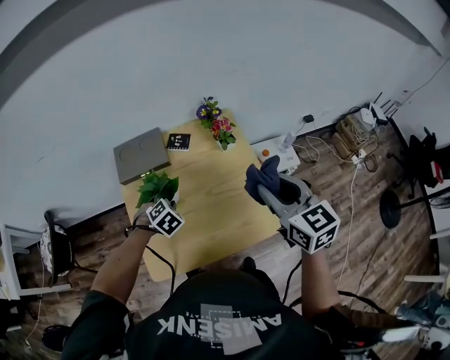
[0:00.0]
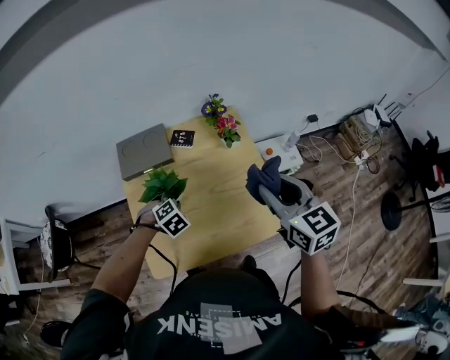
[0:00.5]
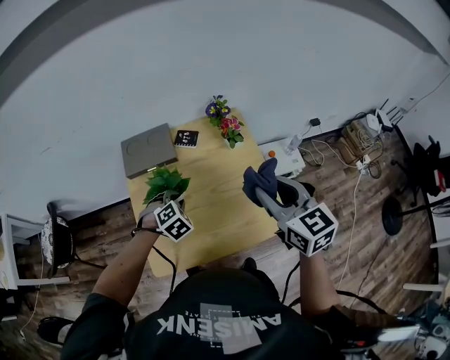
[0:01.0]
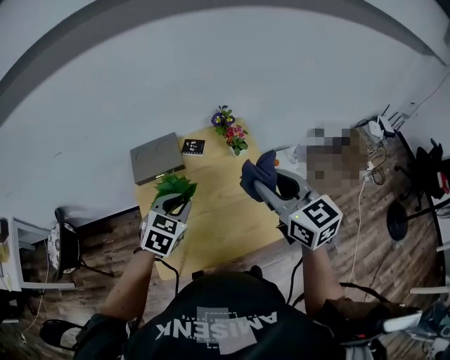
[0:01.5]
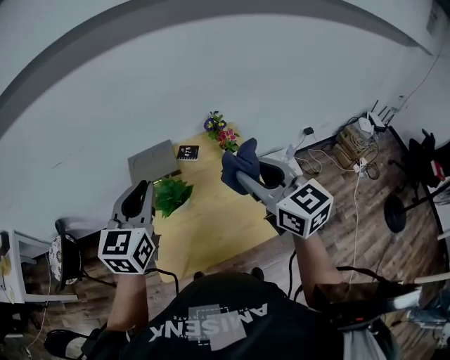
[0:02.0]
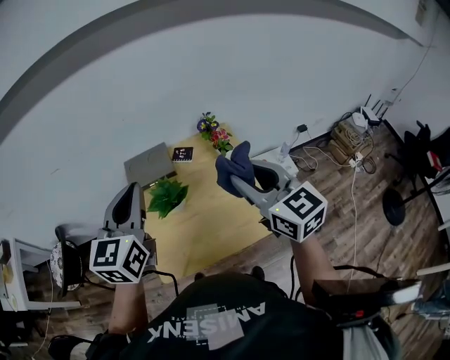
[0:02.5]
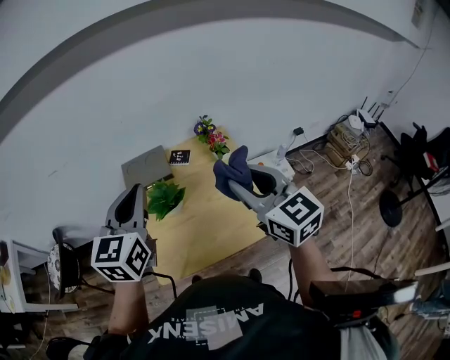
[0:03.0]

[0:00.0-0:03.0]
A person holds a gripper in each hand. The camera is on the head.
0:00.0 to 0:01.5: The right gripper changes place by approximately 5 cm; the left gripper is displaced upward by about 15 cm, and swivels approximately 30 degrees.
0:01.5 to 0:03.0: The right gripper is displaced upward by some 5 cm. The left gripper shifts some 20 cm upward, and tips its fingers upward by roughly 30 degrees.

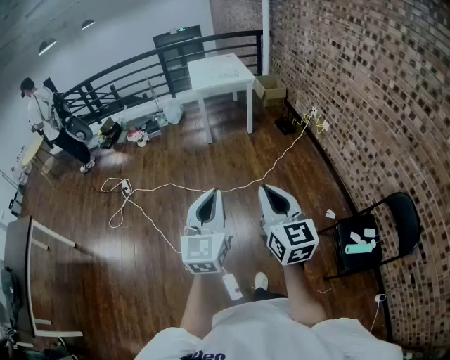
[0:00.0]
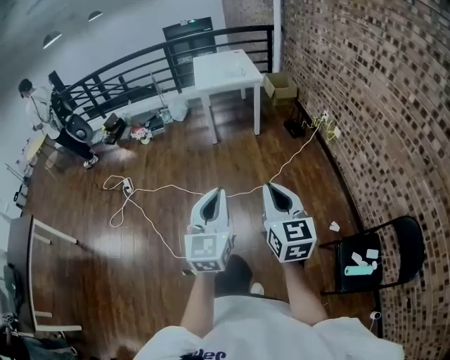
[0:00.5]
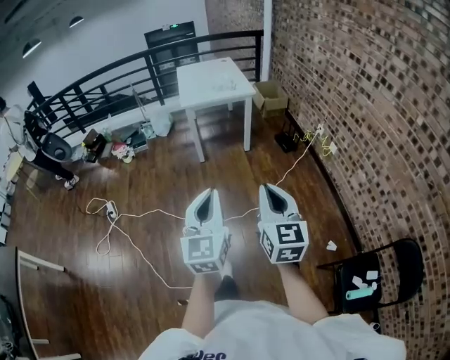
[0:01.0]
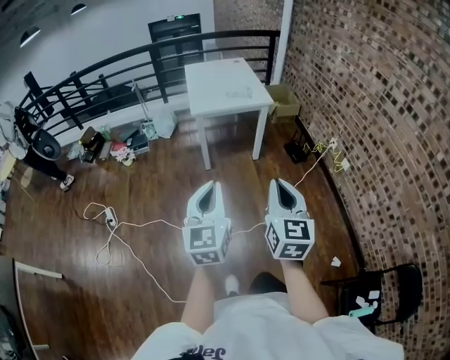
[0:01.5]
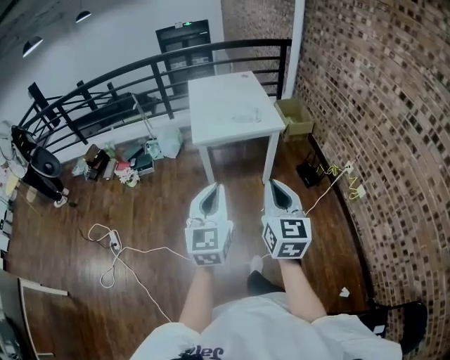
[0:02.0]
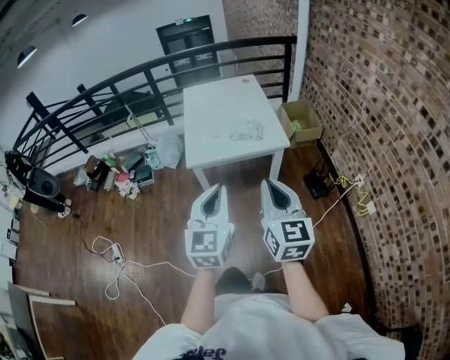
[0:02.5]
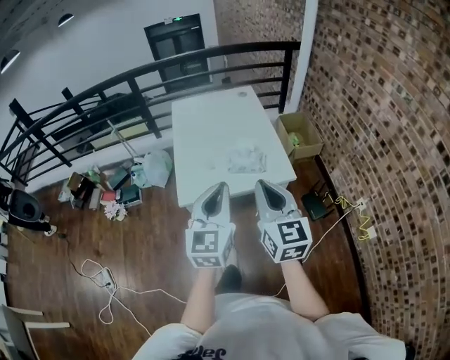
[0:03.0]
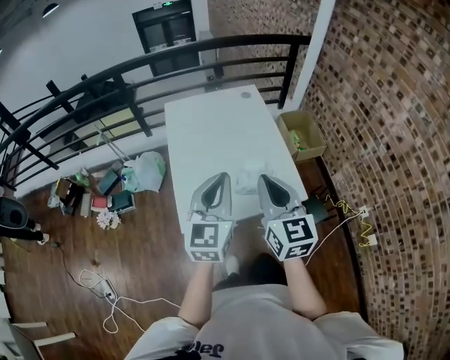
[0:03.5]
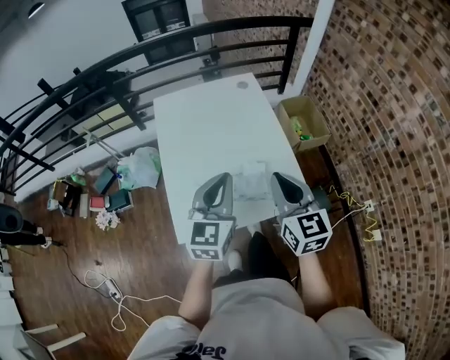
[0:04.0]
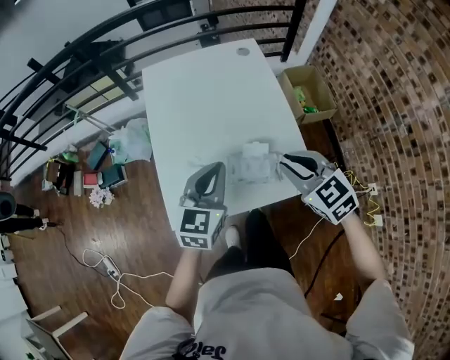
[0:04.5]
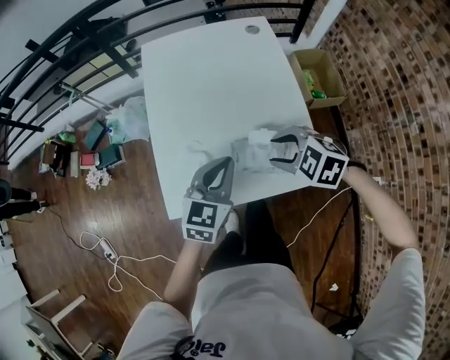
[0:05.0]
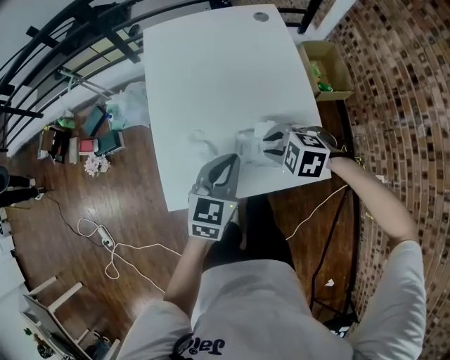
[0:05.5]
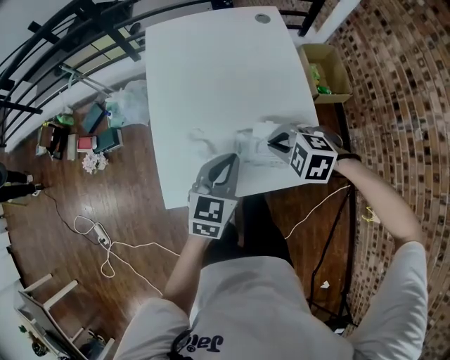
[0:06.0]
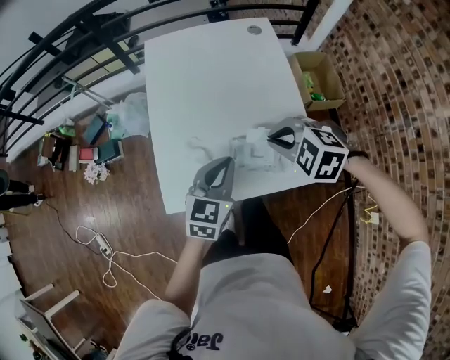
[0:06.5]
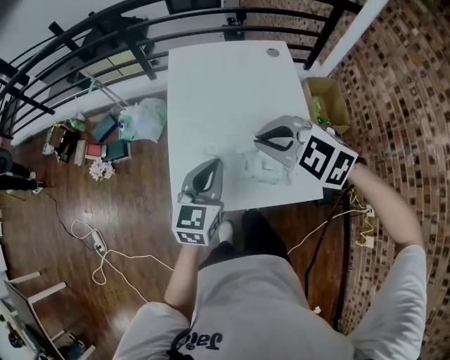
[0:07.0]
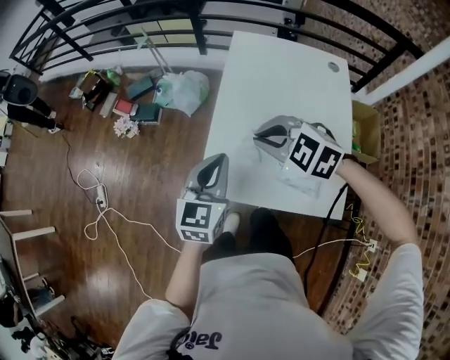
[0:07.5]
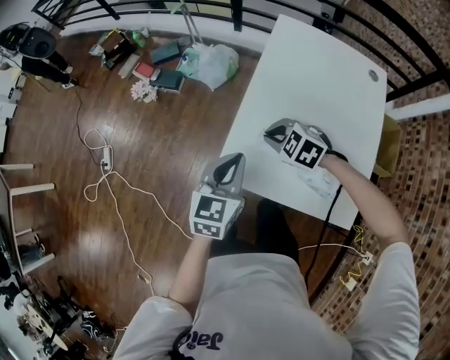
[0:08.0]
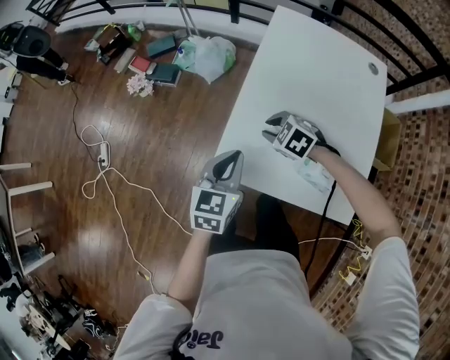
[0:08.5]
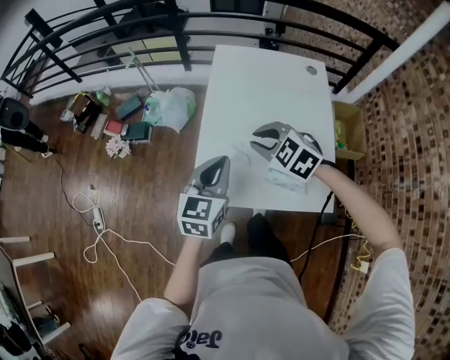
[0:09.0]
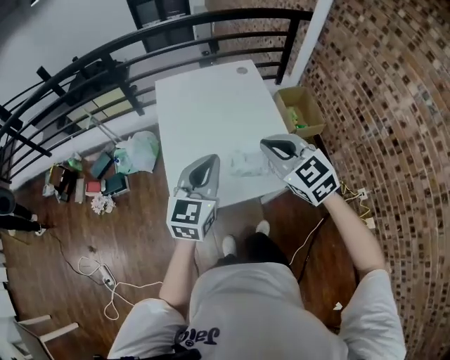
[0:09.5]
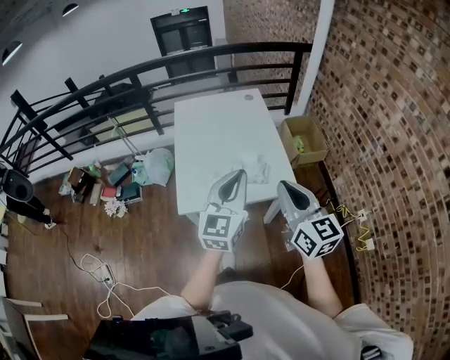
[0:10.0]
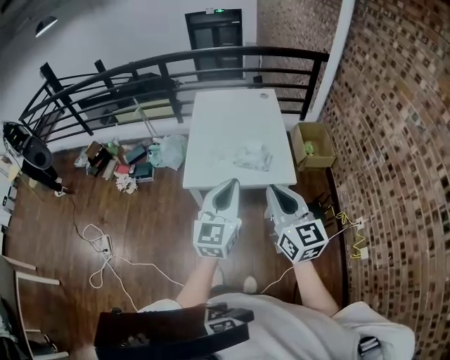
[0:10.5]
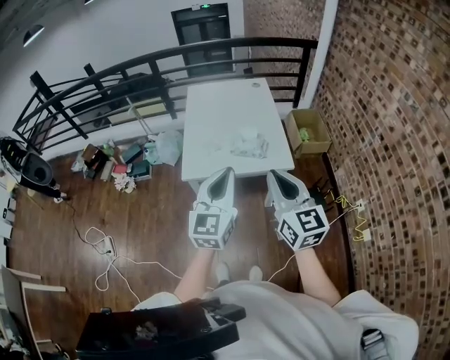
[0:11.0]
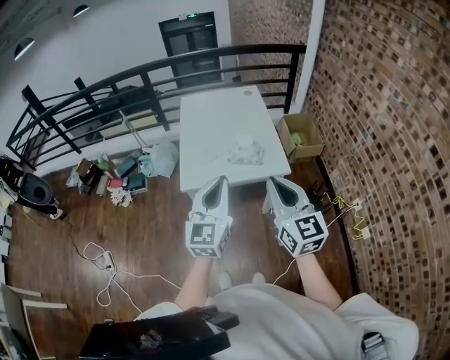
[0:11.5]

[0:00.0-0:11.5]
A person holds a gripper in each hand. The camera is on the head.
0:00.0 to 0:02.0: The two grippers travel together, forward, about 80 cm.
0:02.0 to 0:04.0: The pair of grippers is taken forward, approximately 70 cm.
0:04.0 to 0:06.0: Both grippers travel together downward, some 20 cm. The right gripper tilts its fingers some 50 degrees downward, and opens and closes again.
0:06.0 to 0:07.5: The left gripper shifts by approximately 20 cm, and turns by about 30 degrees, while the right gripper shifts by approximately 25 cm, and changes its angle by some 20 degrees.
0:07.5 to 0:09.5: The left gripper moves some 15 cm, and rotates roughly 30 degrees. Meanwhile the right gripper travels downward and back again, roughly 20 cm each way, changes its angle by roughly 50 degrees, and opens, then closes again.
0:09.5 to 0:11.5: Both grippers move backward, roughly 30 cm. The right gripper rotates roughly 30 degrees.

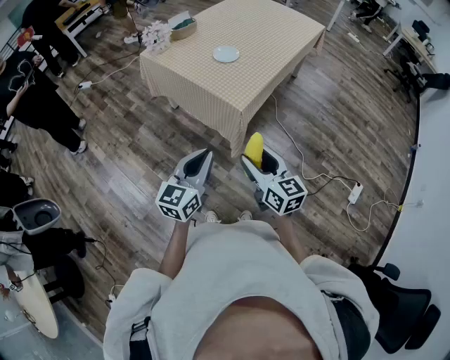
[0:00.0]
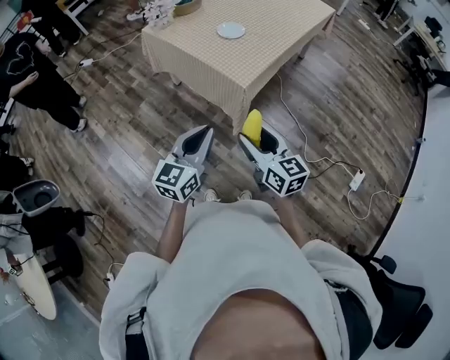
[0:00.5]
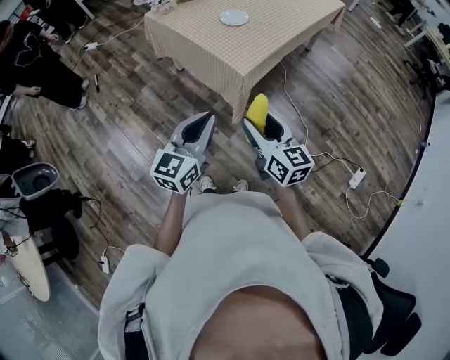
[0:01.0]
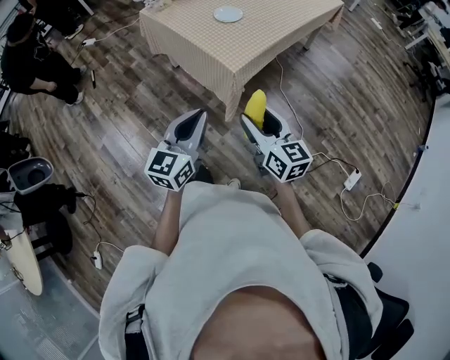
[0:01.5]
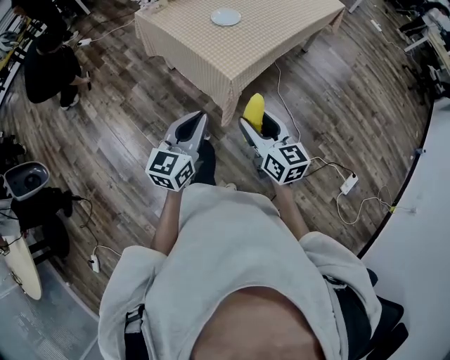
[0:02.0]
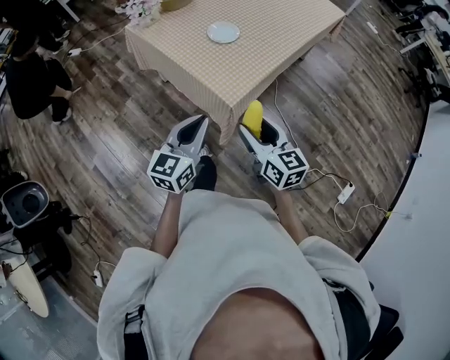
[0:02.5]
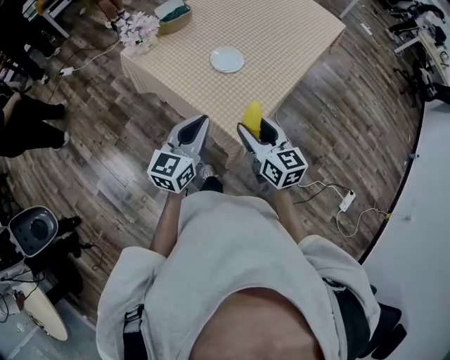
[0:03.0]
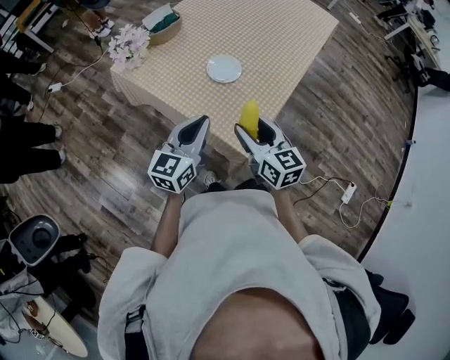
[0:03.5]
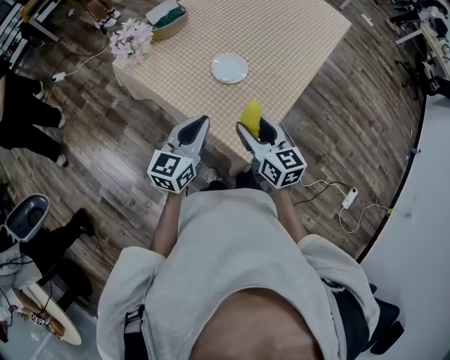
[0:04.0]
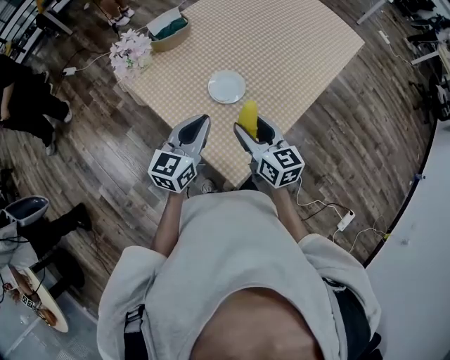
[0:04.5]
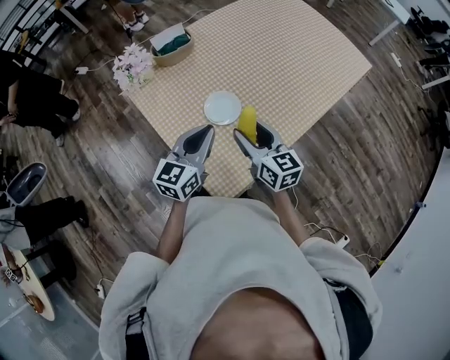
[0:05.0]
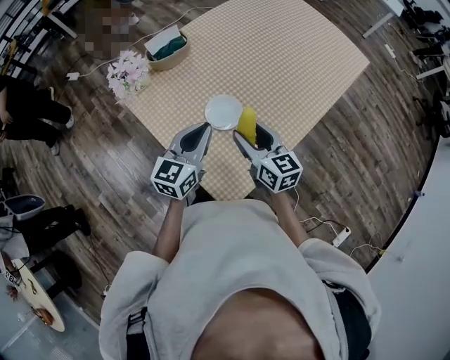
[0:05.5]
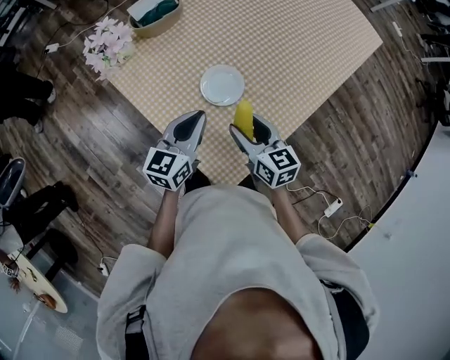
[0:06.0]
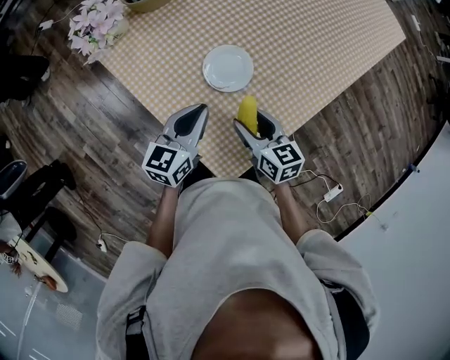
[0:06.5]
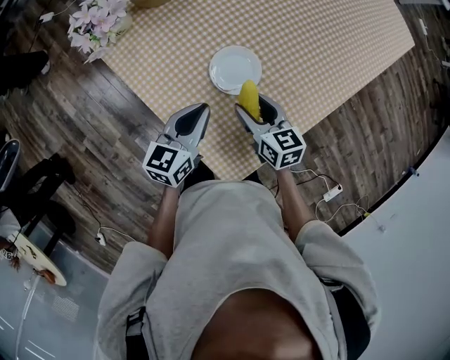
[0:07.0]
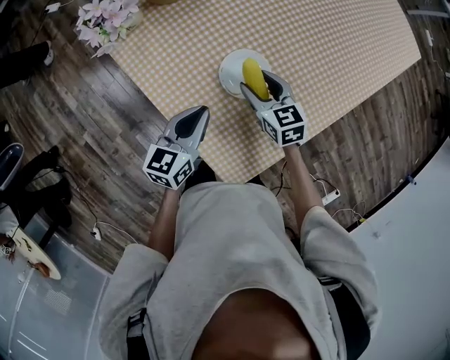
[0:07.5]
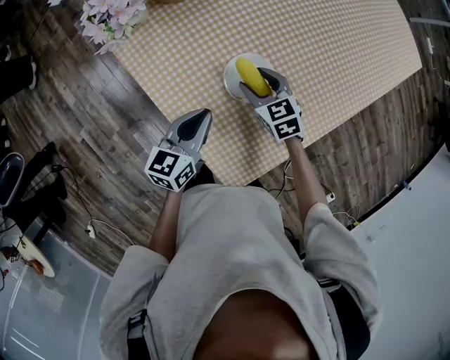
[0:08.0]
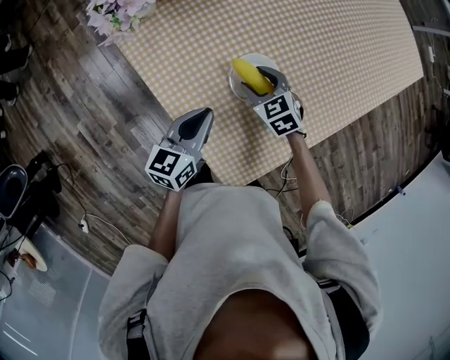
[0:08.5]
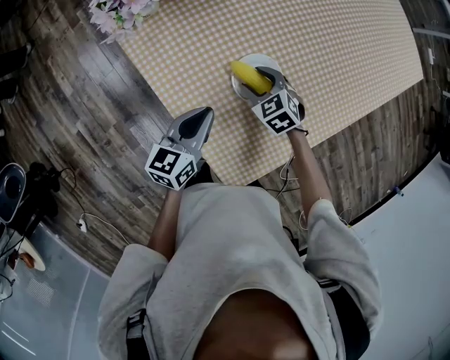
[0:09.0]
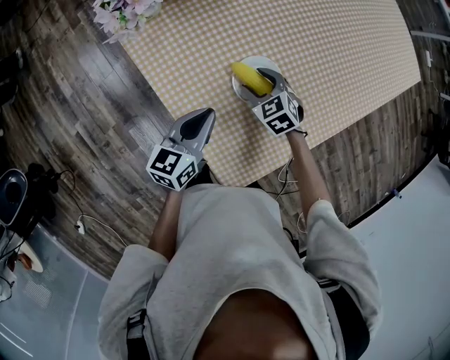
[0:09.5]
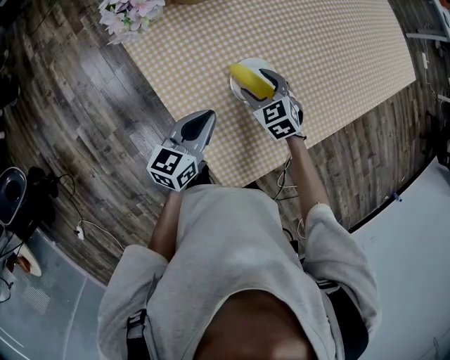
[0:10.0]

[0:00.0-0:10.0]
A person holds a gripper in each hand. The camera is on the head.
0:00.0 to 0:02.0: The right gripper goes about 10 cm forward and to the right. Meanwhile the left gripper travels to the right and forward by approximately 10 cm.
0:02.0 to 0:04.0: The grippers both shift forward by approximately 35 cm.
0:04.0 to 0:06.0: The right gripper shifts approximately 15 cm forward and downward. Meanwhile the left gripper shifts approximately 15 cm forward and to the right.
0:06.0 to 0:08.0: The right gripper travels forward and downward by roughly 20 cm, and changes its angle by about 30 degrees; the left gripper shifts approximately 10 cm downward.

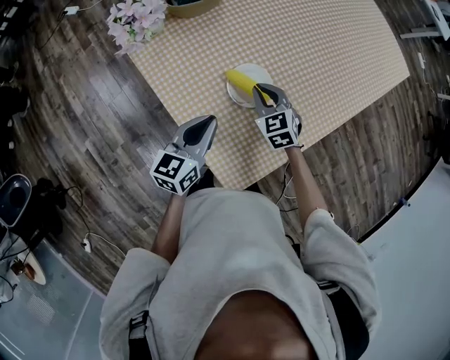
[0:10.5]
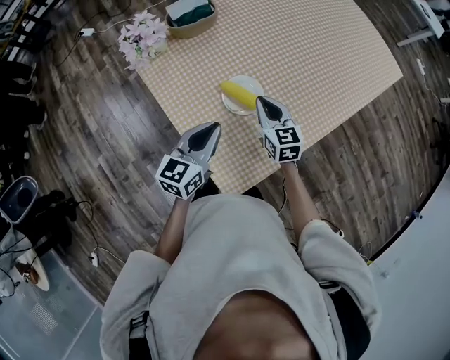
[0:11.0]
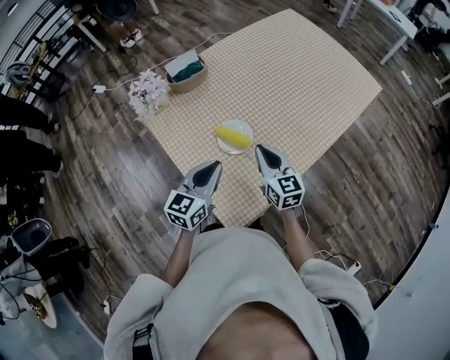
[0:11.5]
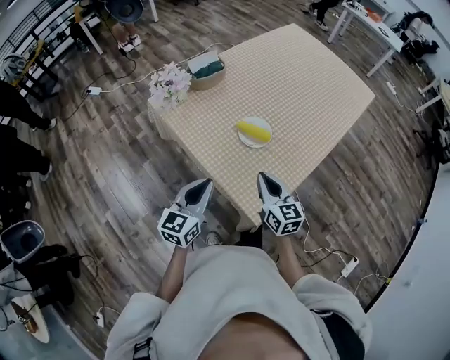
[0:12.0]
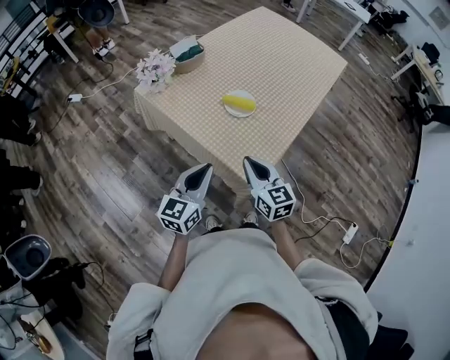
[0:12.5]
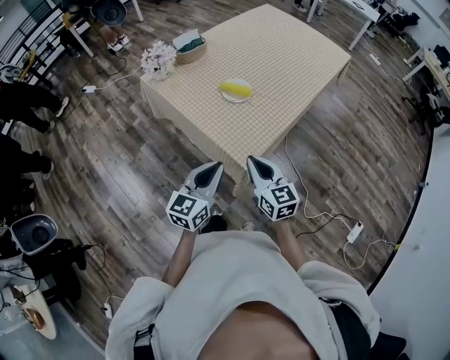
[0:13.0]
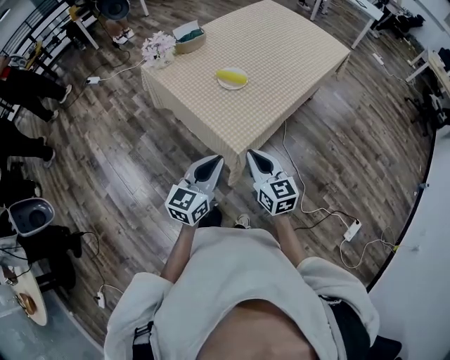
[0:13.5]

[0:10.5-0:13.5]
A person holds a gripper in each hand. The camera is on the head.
0:10.5 to 0:12.0: The left gripper shifts some 20 cm backward, upward and to the left, while the right gripper is displaced backward and upward by roughly 25 cm, and rotates roughly 40 degrees.
0:12.0 to 0:13.5: The left gripper travels backward and to the right by some 25 cm, while the right gripper goes roughly 25 cm backward.
